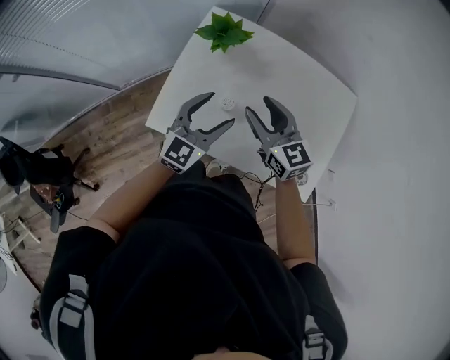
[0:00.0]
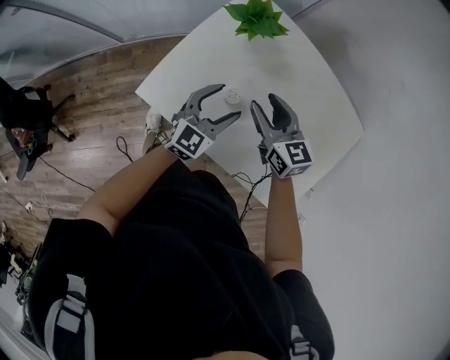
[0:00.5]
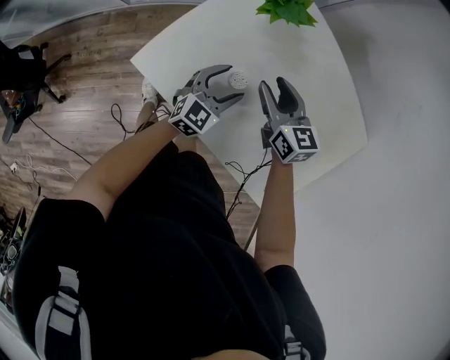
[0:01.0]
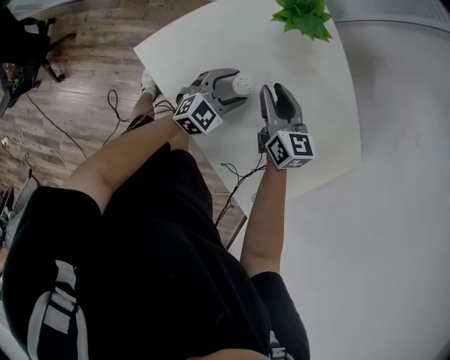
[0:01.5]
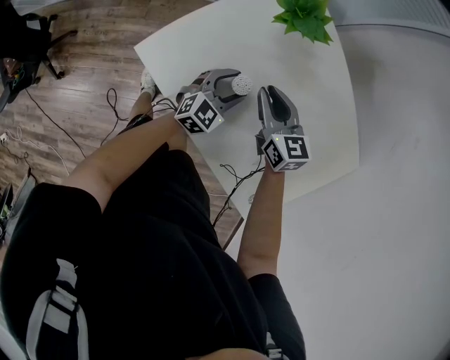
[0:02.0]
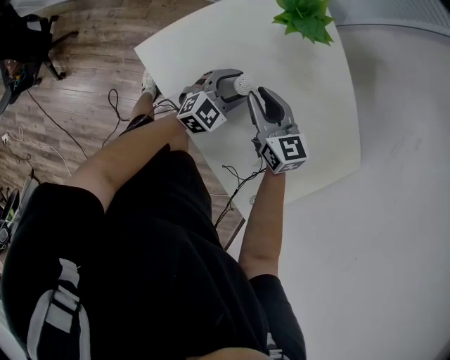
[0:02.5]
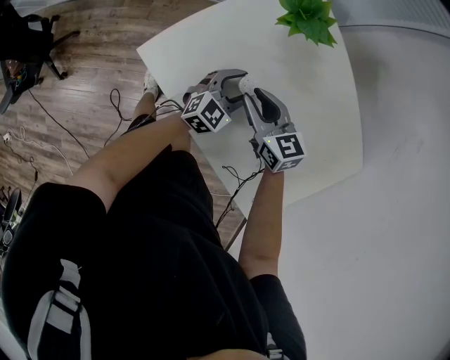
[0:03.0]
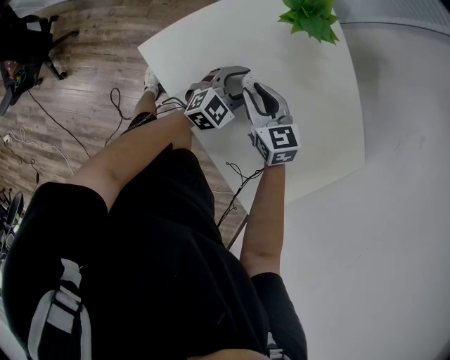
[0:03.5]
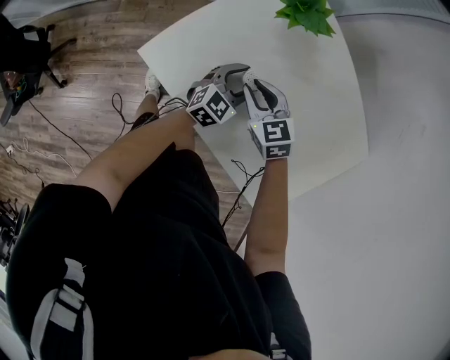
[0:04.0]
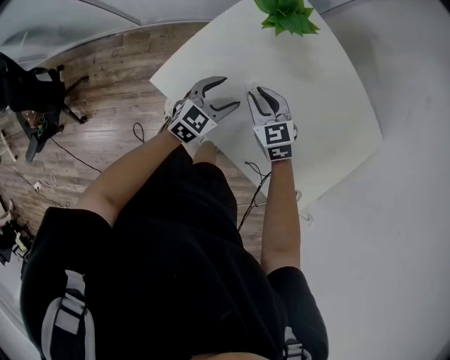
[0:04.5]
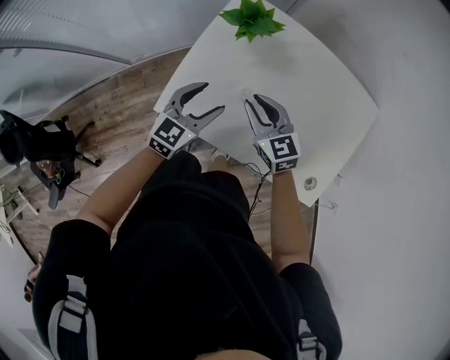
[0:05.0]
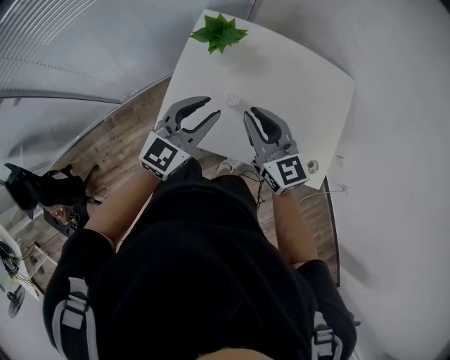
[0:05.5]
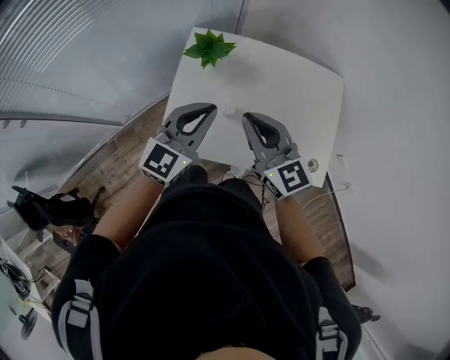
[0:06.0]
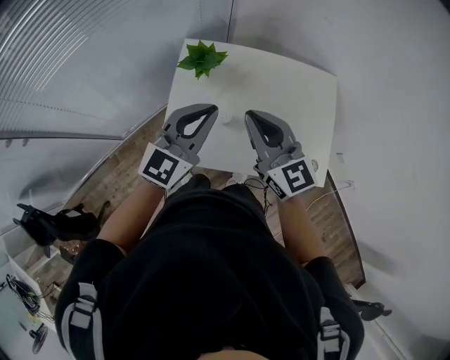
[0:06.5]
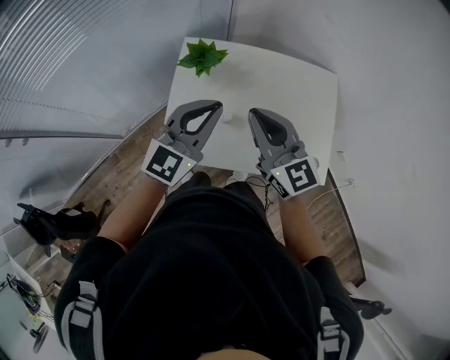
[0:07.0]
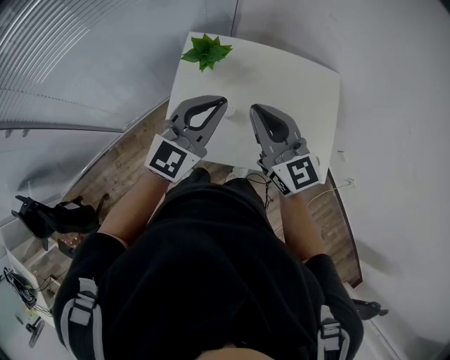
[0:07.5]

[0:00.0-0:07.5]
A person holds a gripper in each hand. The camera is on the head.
0:00.0 to 0:02.0: Both grippers travel together downward, roughly 20 cm. The right gripper turns by about 20 degrees, and closes up; the left gripper rotates some 30 degrees.
0:02.0 to 0:04.0: The right gripper is displaced to the left by some 5 cm, and changes its angle by about 20 degrees.
0:04.0 to 0:05.5: Both grippers travel together upward, about 30 cm. The right gripper rotates approximately 40 degrees. The left gripper swivels about 30 degrees, and closes up.
0:05.5 to 0:07.5: The grippers both shift upward by approximately 10 cm. The left gripper closes its fingers.

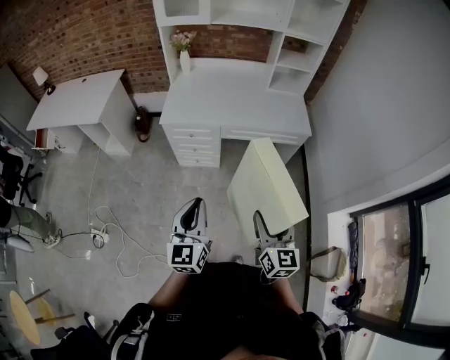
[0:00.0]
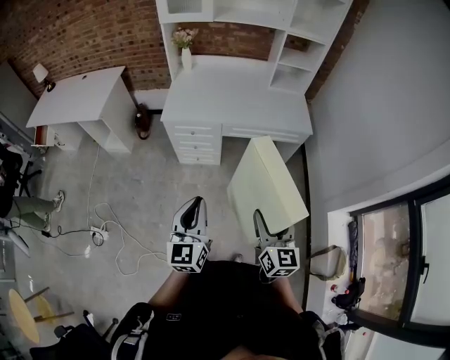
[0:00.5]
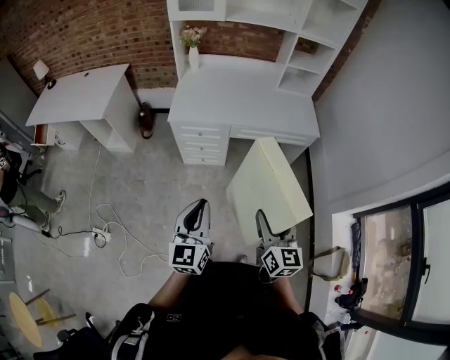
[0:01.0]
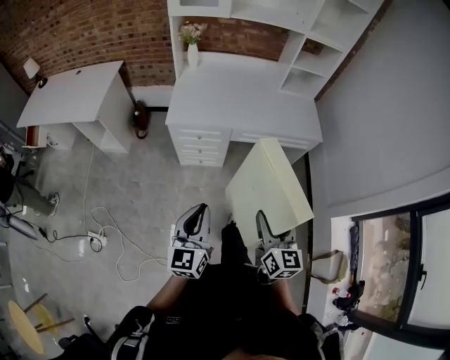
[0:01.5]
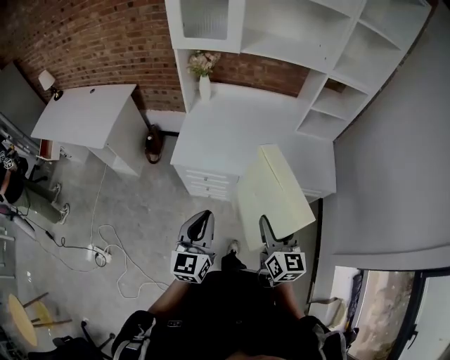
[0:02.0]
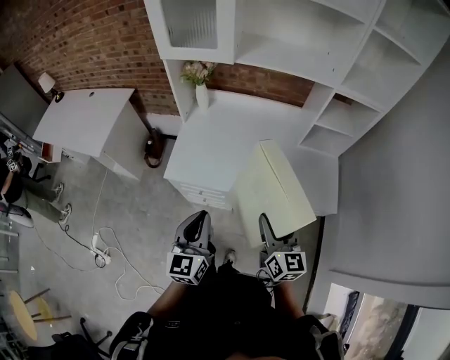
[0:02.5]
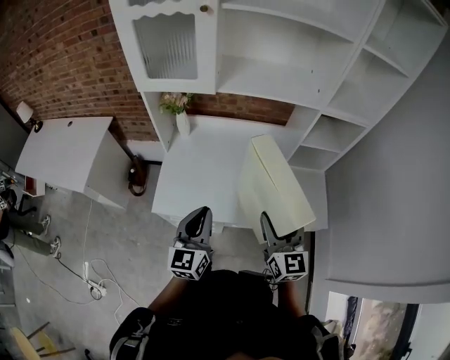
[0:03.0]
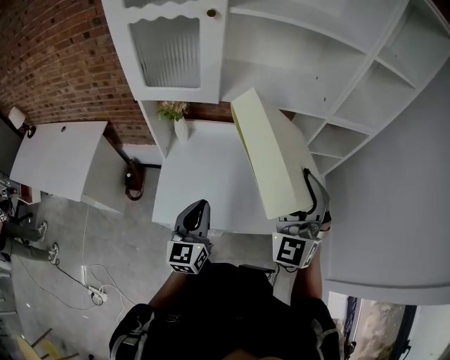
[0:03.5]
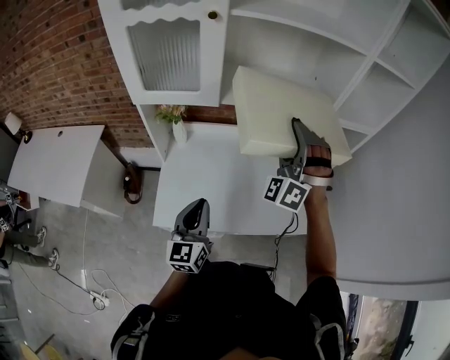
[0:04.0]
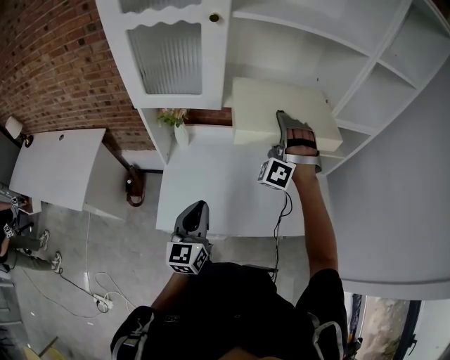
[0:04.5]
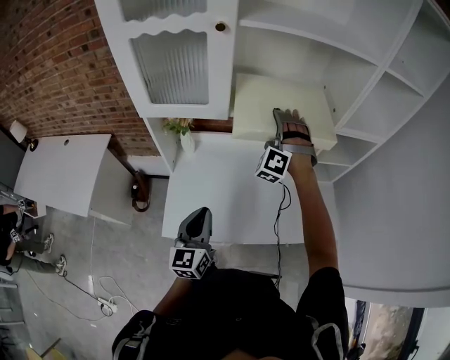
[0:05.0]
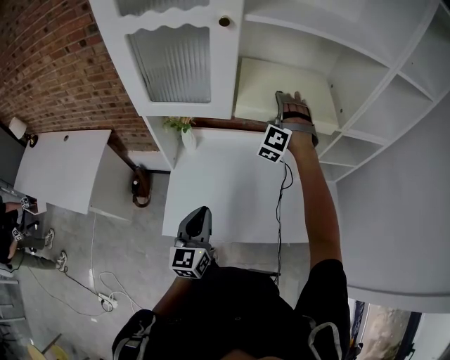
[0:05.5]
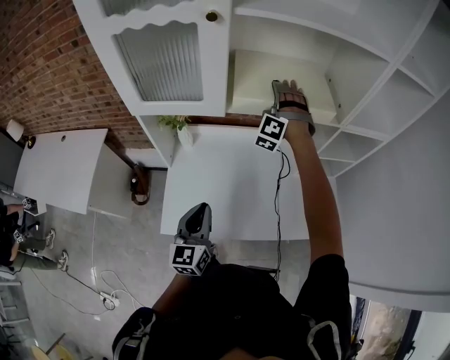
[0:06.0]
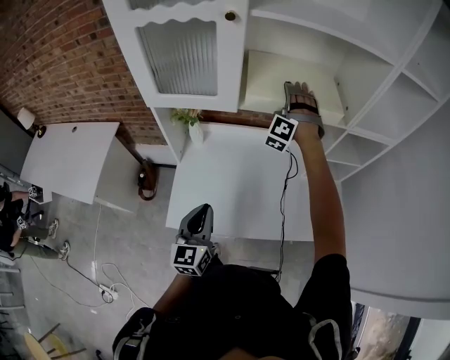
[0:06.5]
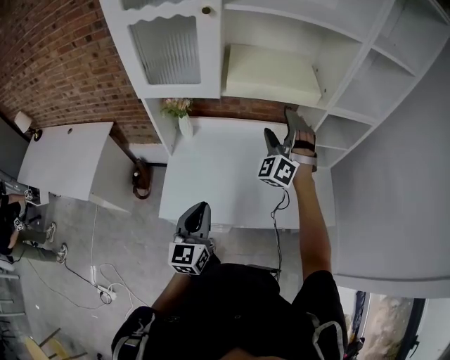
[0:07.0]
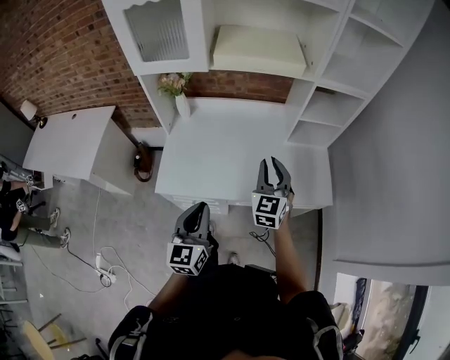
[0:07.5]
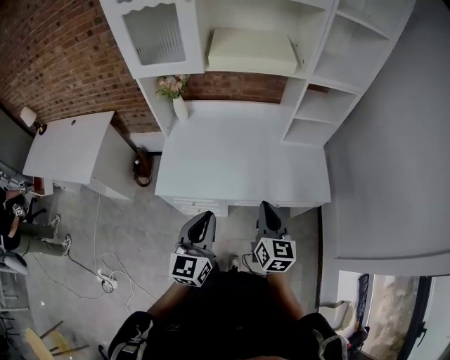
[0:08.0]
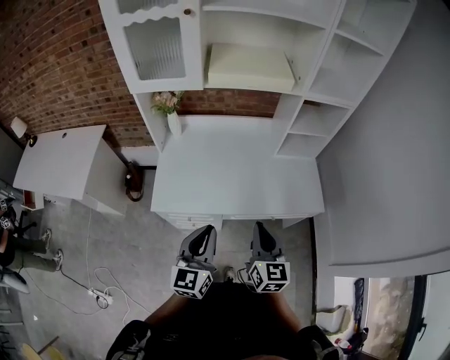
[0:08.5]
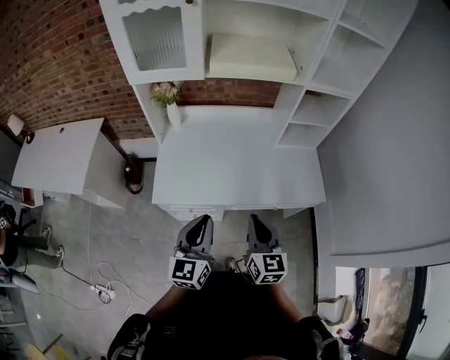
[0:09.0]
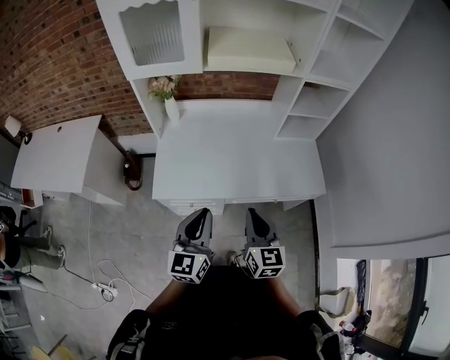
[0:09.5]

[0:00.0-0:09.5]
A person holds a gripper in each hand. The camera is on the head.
0:00.0 to 0:02.0: Both grippers travel together forward, approximately 30 cm.
0:02.0 to 0:04.0: The left gripper travels forward by some 35 cm, while the right gripper moves forward and upward, roughly 50 cm, and rotates around the line of its fingers by roughly 90 degrees, counterclockwise from behind.
0:04.0 to 0:05.5: The left gripper moves roughly 5 cm; the right gripper moves forward and downward, roughly 25 cm, and turns by about 20 degrees.
0:05.5 to 0:07.5: The left gripper travels backward and to the right by roughly 20 cm, while the right gripper goes roughly 35 cm backward and to the right, rolls clockwise, seen from behind, by approximately 70 degrees, and closes up.
0:07.5 to 0:09.5: The right gripper moves backward, some 15 cm, and turns by roughly 30 degrees.

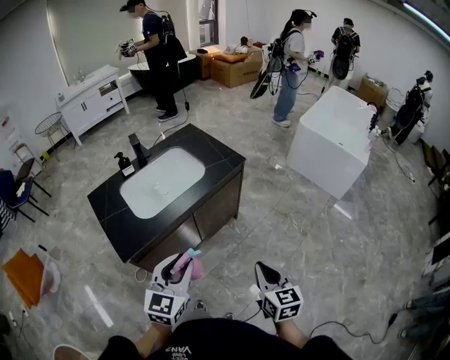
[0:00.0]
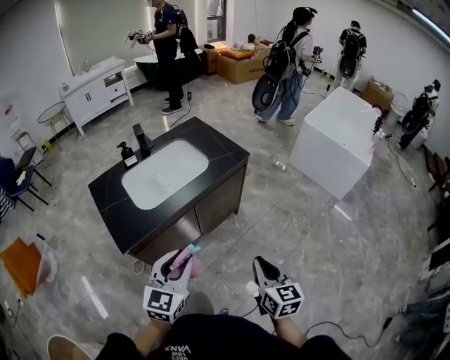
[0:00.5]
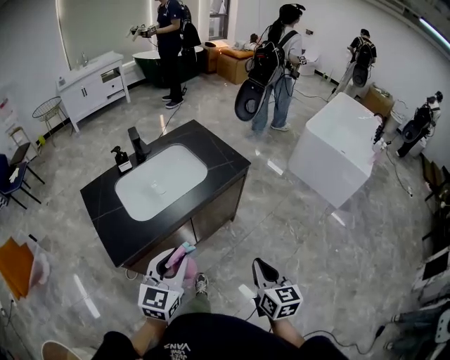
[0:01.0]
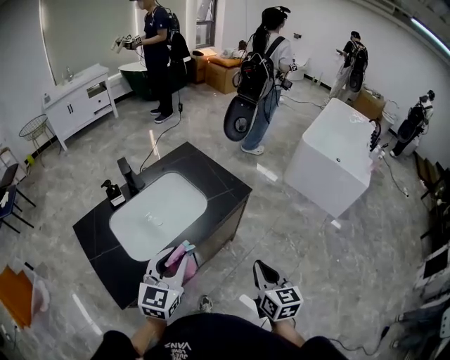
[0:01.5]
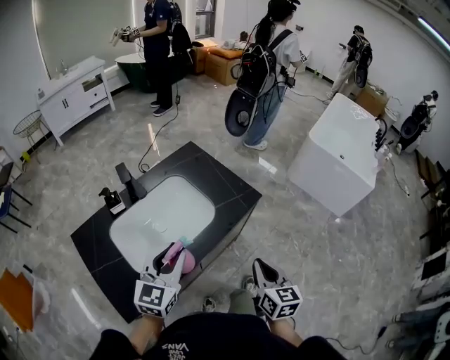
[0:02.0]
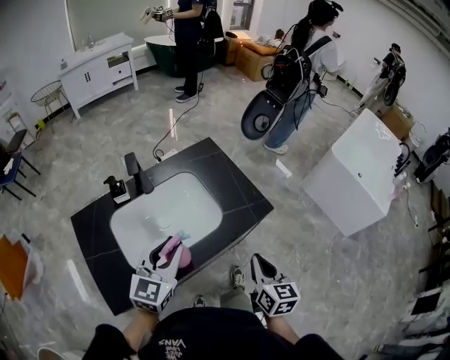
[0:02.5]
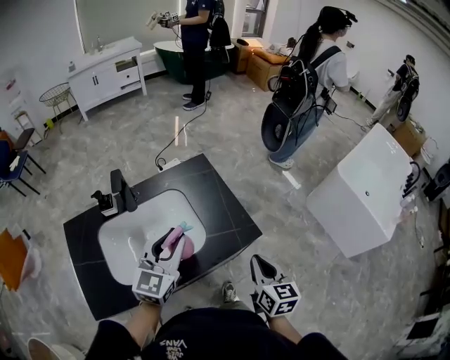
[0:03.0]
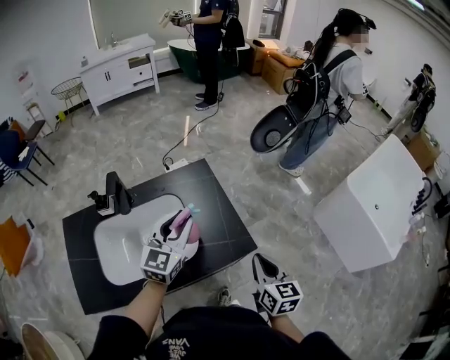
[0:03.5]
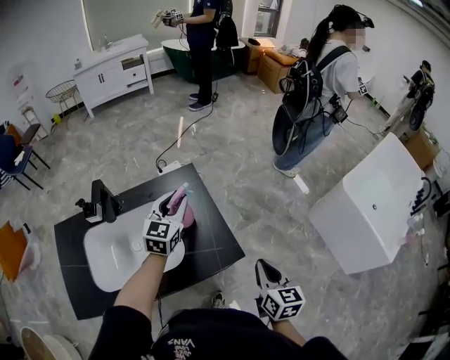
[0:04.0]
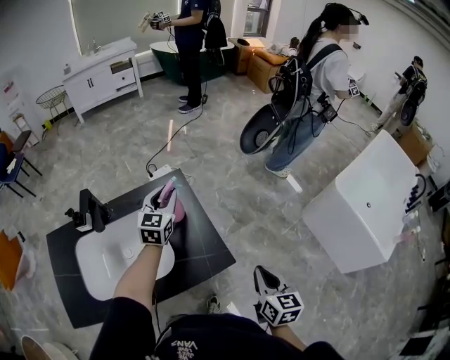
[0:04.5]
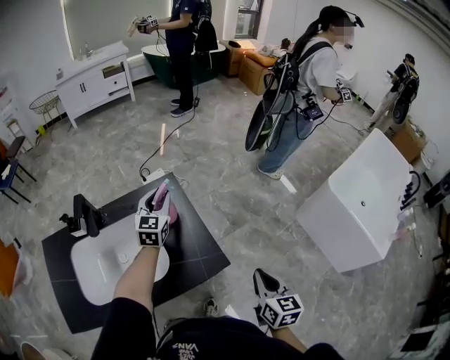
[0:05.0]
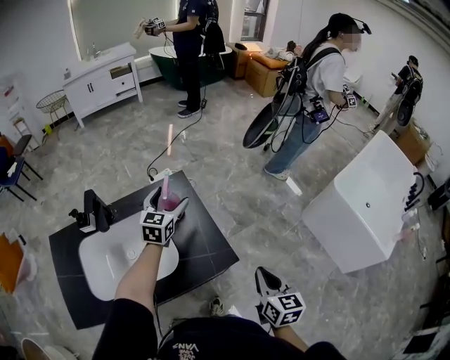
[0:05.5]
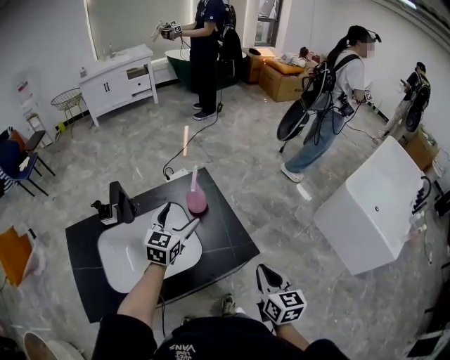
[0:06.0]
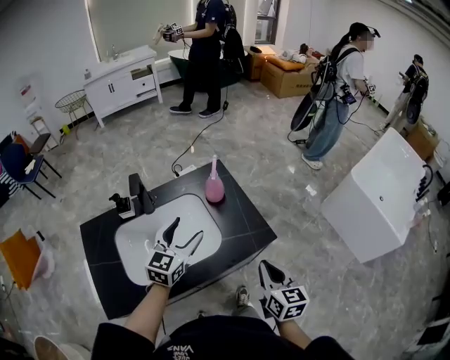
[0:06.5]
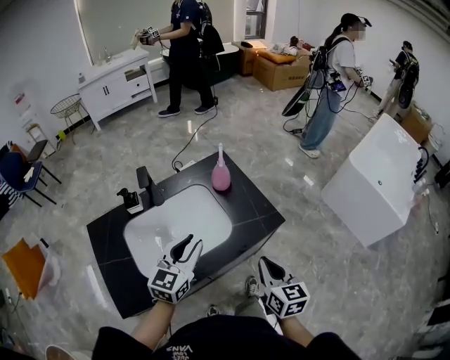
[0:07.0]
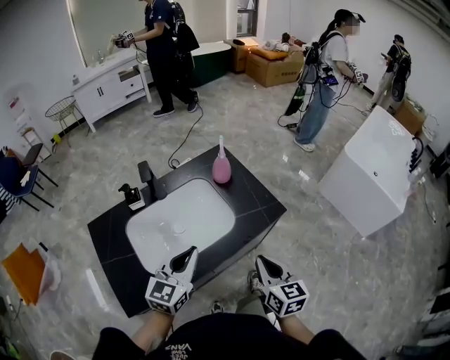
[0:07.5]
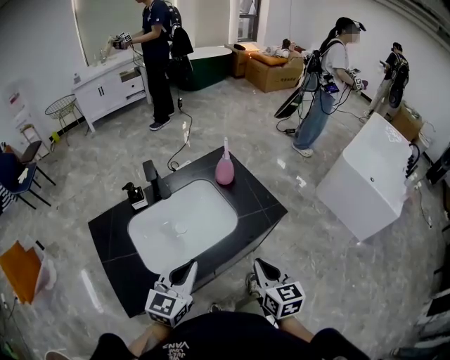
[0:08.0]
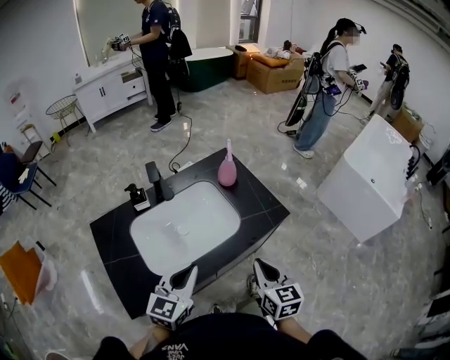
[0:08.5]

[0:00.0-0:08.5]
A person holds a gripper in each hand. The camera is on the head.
0:00.0 to 0:02.0: Both grippers move forward, approximately 30 cm.
0:02.0 to 0:04.0: The left gripper goes approximately 35 cm forward, and rotates approximately 20 degrees. The right gripper moves forward and to the right, roughly 30 cm.
0:04.0 to 0:06.5: The right gripper travels to the left and backward by some 15 cm, while the left gripper is displaced backward and to the left by approximately 20 cm, and opens.
0:06.5 to 0:08.5: The right gripper travels to the left and backward by some 15 cm, while the left gripper travels backward by roughly 20 cm, and closes up.

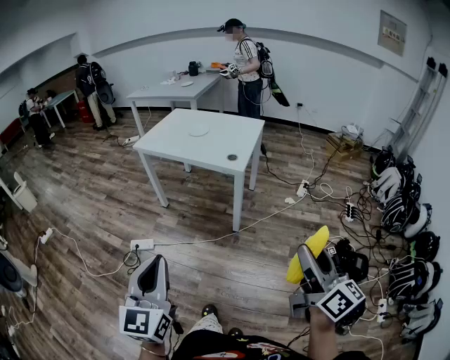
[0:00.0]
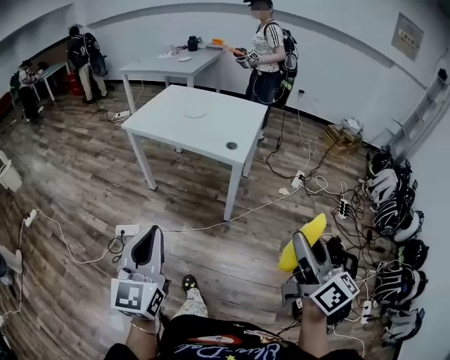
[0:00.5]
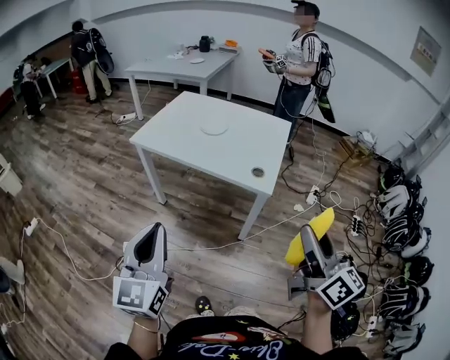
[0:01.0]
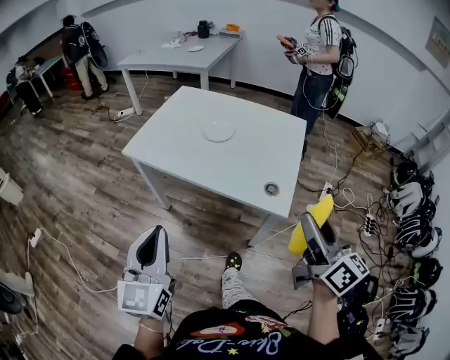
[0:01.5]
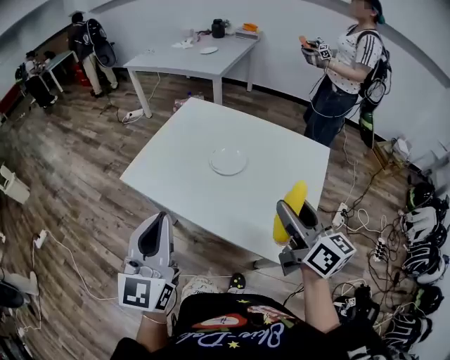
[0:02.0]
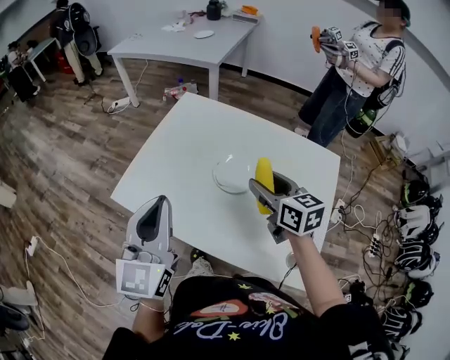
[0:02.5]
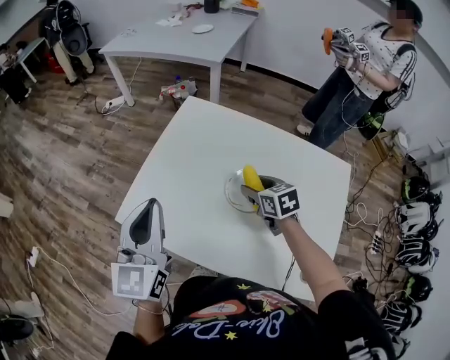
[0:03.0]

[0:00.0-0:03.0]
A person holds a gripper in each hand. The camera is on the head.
0:00.0 to 0:01.5: The two grippers travel together, forward, approximately 50 cm.
0:01.5 to 0:03.0: The pair of grippers is taken forward, about 50 cm. The right gripper goes about 25 cm downward, and angles its fingers downward, by about 50 degrees.
